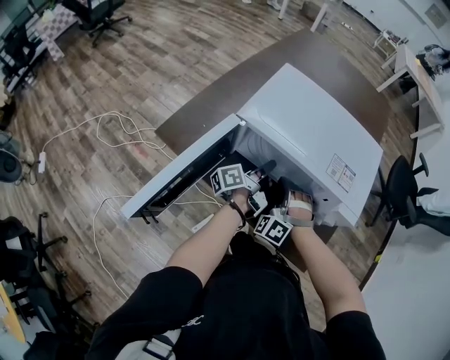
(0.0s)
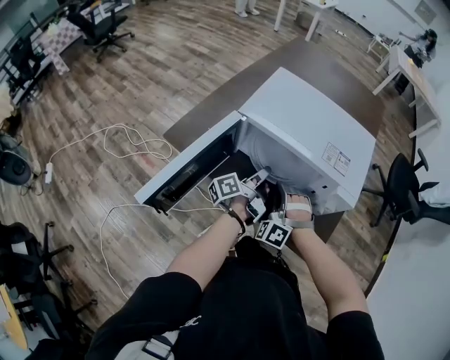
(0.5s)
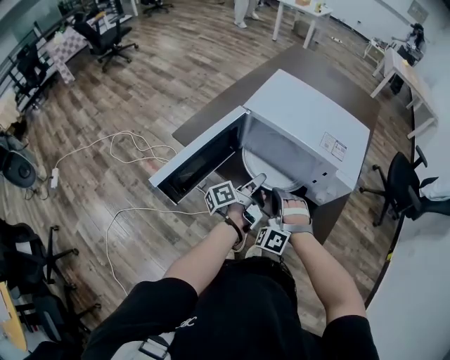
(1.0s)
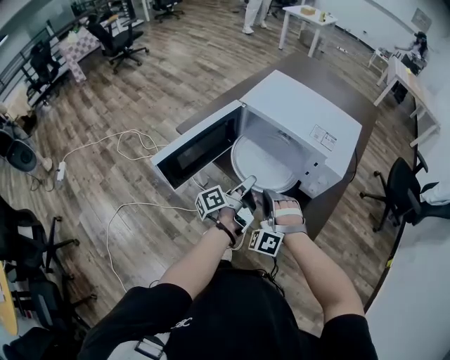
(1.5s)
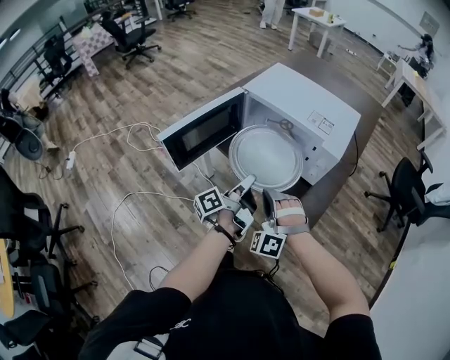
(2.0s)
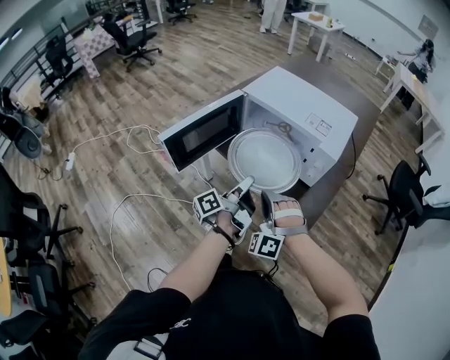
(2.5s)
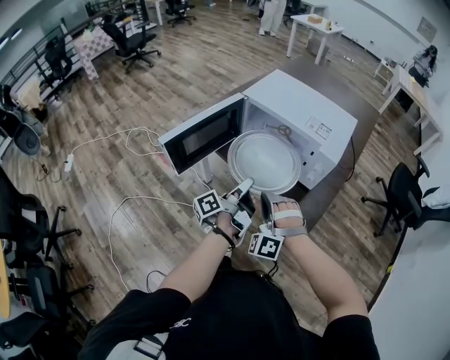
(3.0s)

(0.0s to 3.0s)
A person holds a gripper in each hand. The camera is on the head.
0.0s - 1.5s: Both grippers move backward, approximately 20 cm.
1.5s - 3.0s: Both grippers travel together backward, about 10 cm.

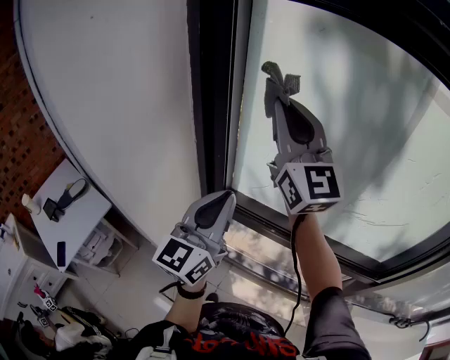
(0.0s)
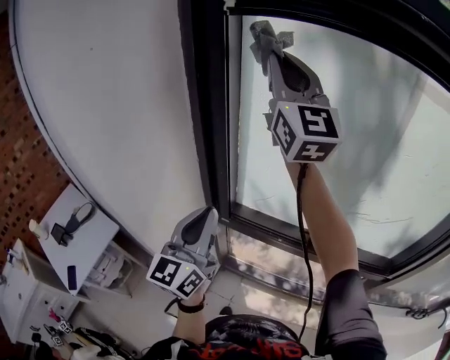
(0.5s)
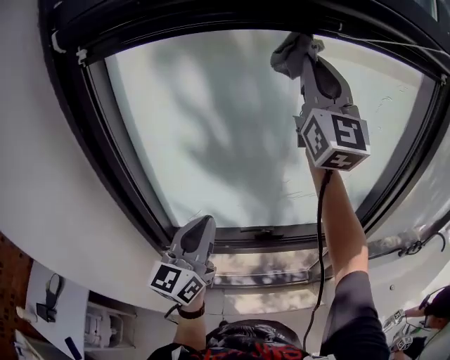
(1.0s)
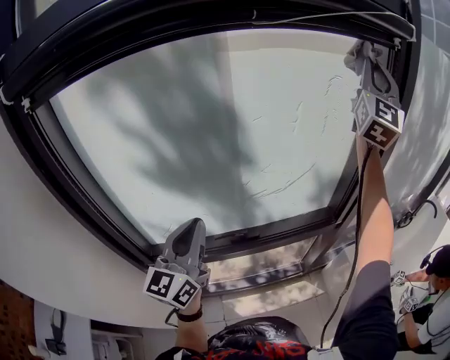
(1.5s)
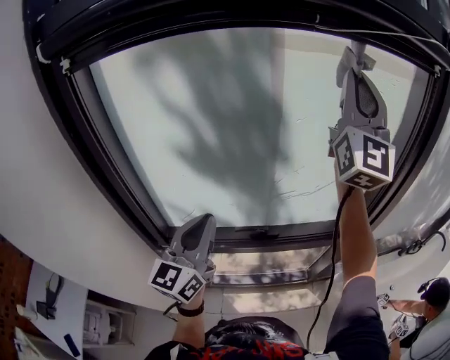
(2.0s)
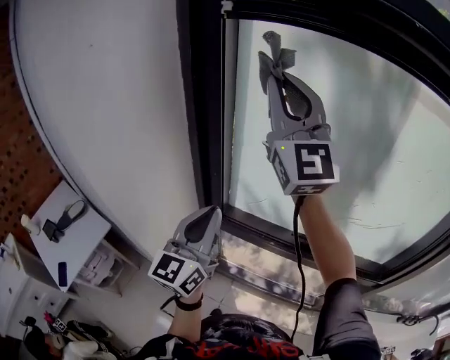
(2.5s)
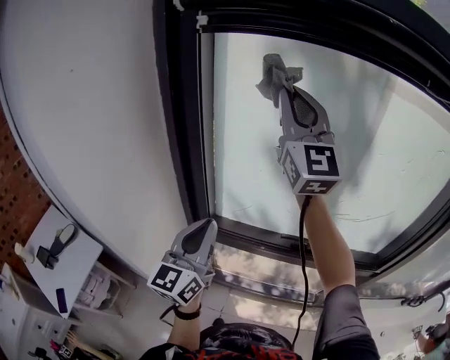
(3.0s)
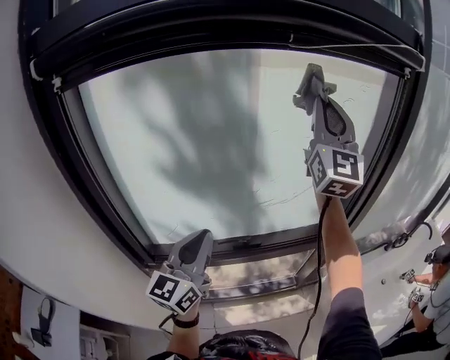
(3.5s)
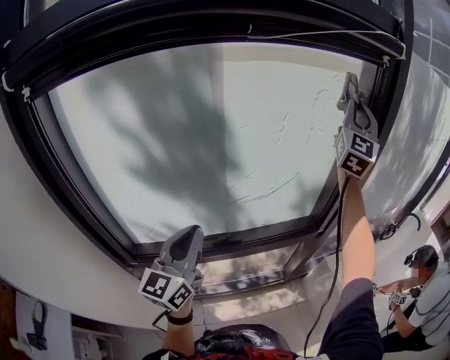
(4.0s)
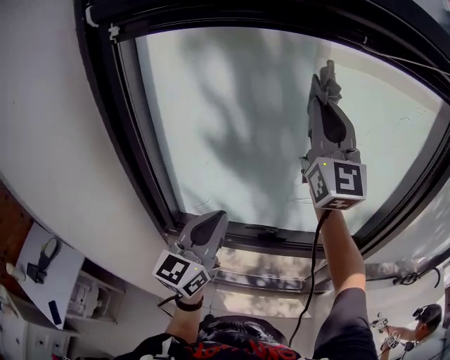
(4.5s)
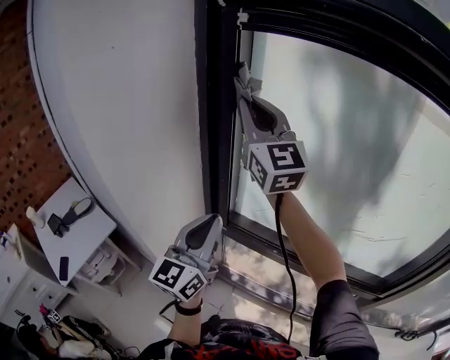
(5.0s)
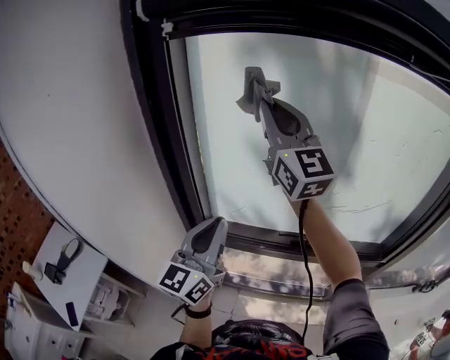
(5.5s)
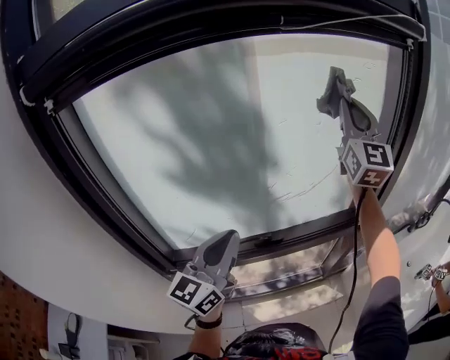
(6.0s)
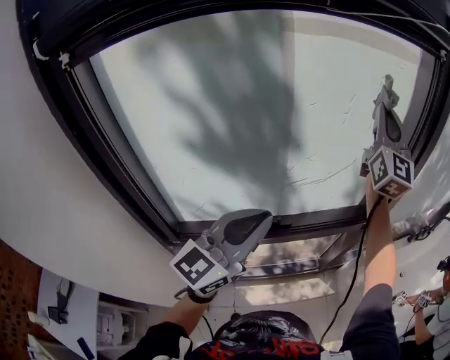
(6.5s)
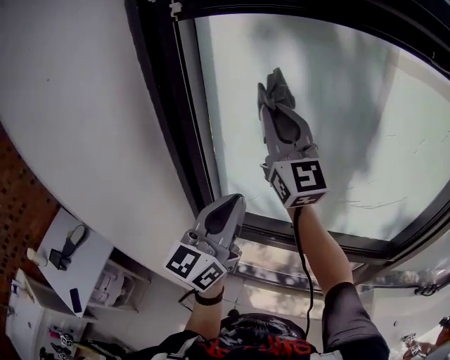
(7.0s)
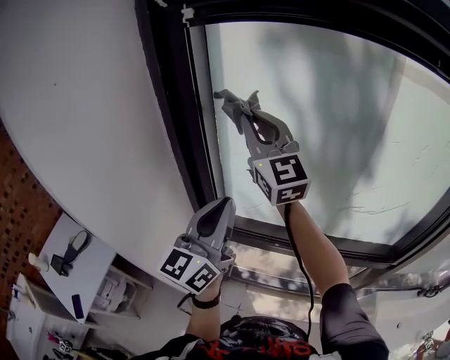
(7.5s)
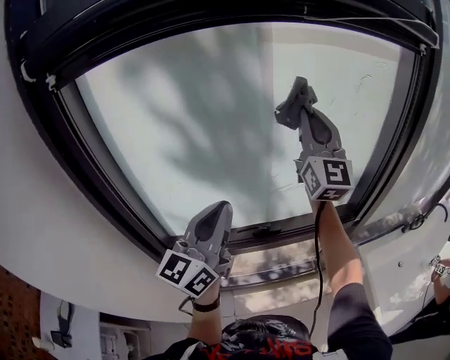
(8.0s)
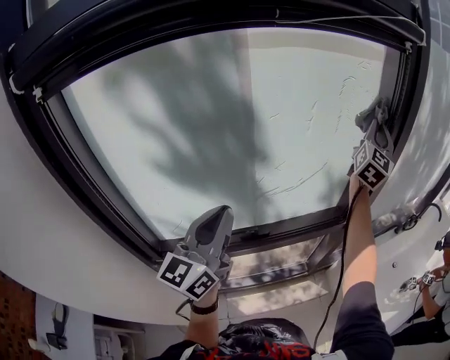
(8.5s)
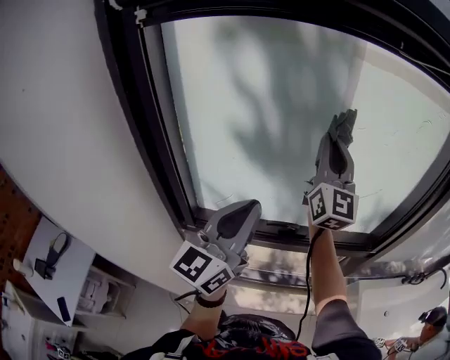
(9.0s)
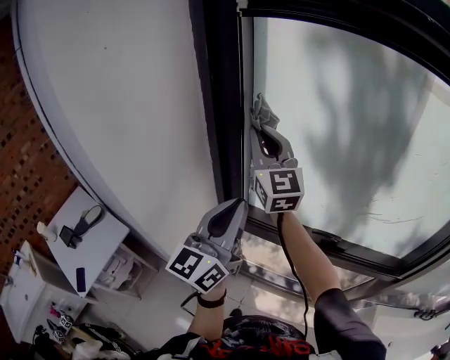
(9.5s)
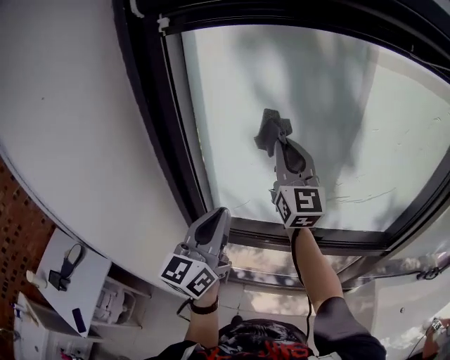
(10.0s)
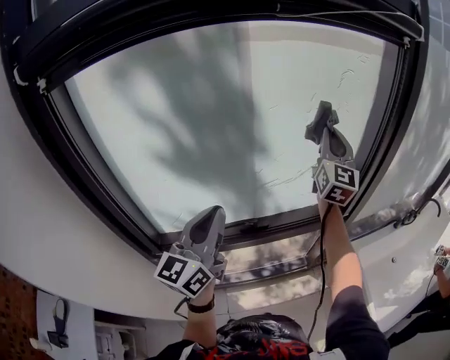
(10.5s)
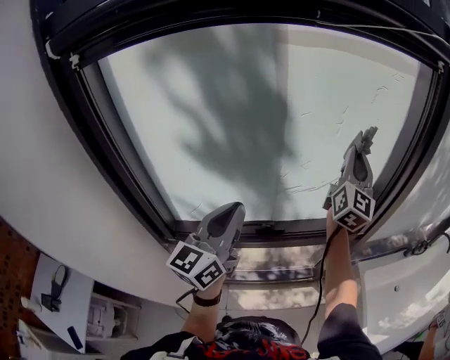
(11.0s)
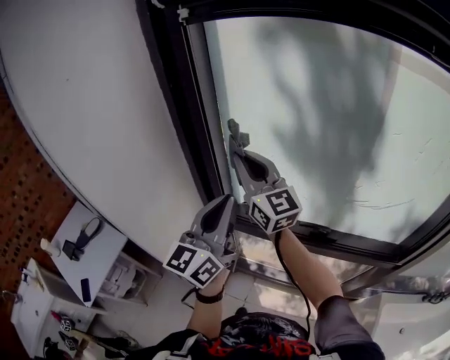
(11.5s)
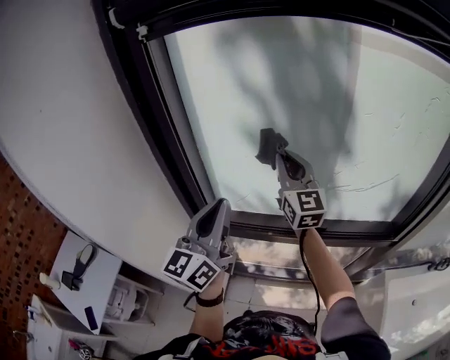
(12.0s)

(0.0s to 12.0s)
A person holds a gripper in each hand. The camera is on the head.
0.0s - 2.0s: The right gripper shifts by approximately 40 cm, and rotates roughly 50 degrees, while the left gripper changes place by approximately 15 cm, and turns by about 20 degrees.
2.0s - 4.0s: The right gripper swivels some 30 degrees.
4.0s - 6.0s: The right gripper changes its angle by some 20 degrees.
8.0s - 10.0s: The right gripper rotates about 20 degrees. The left gripper ends up about 15 cm from where it was, and rotates approximately 20 degrees.
10.0s - 12.0s: The right gripper travels downward by some 10 cm.

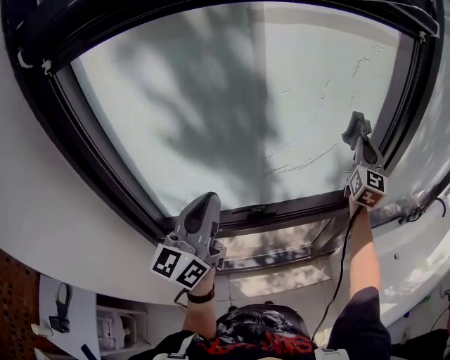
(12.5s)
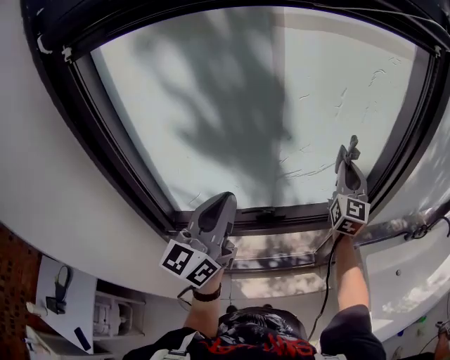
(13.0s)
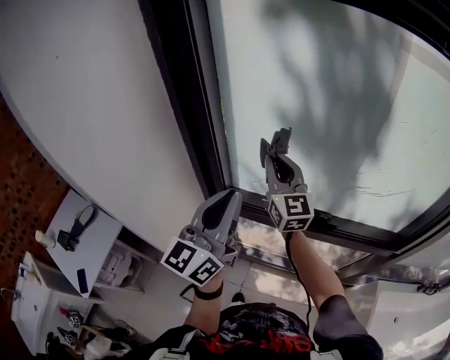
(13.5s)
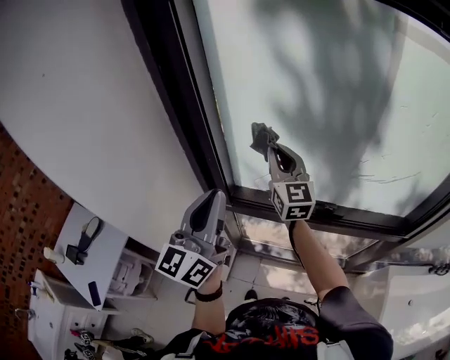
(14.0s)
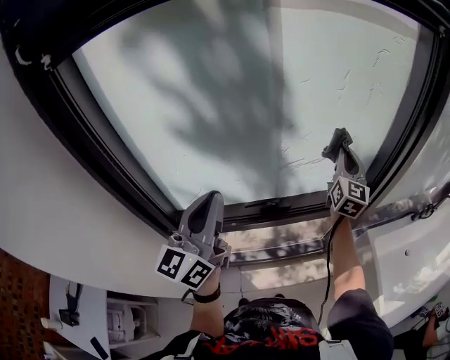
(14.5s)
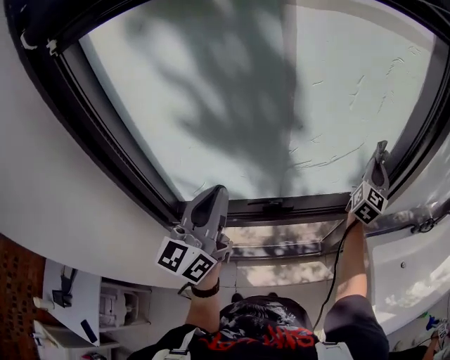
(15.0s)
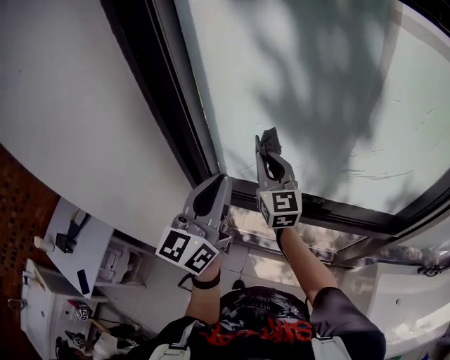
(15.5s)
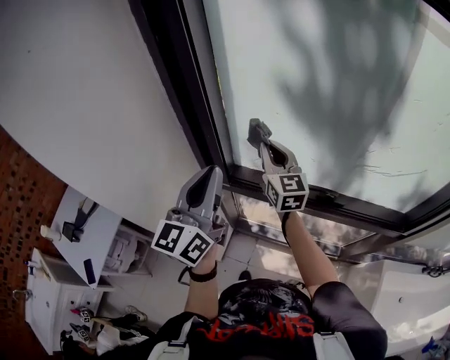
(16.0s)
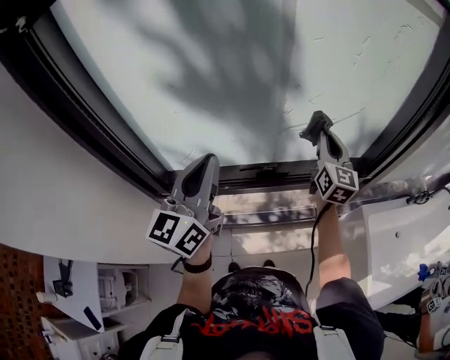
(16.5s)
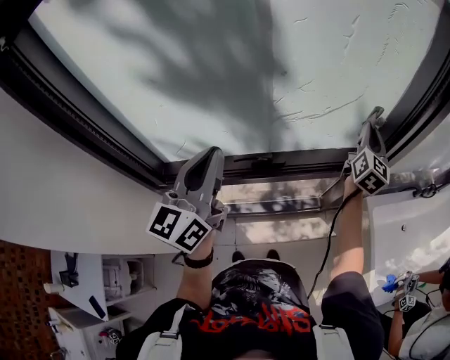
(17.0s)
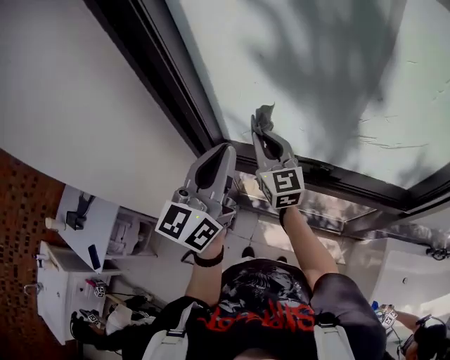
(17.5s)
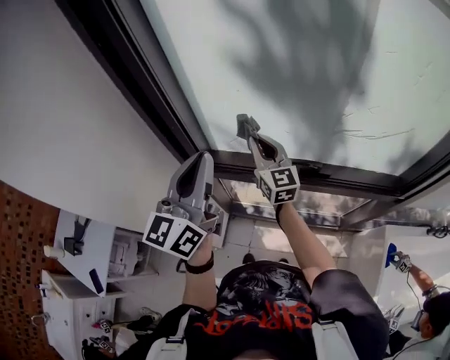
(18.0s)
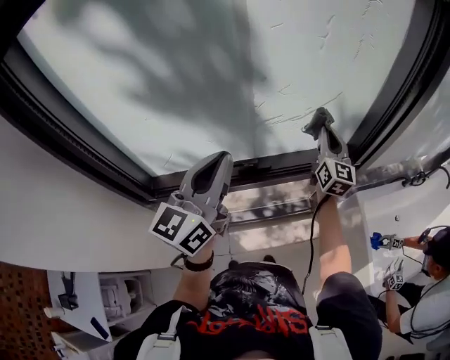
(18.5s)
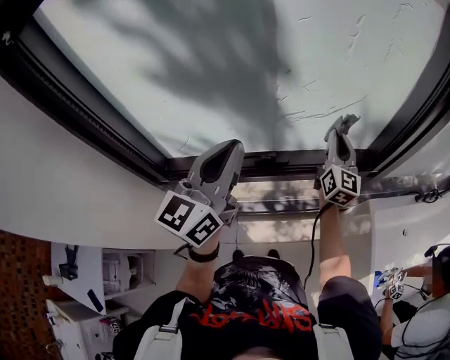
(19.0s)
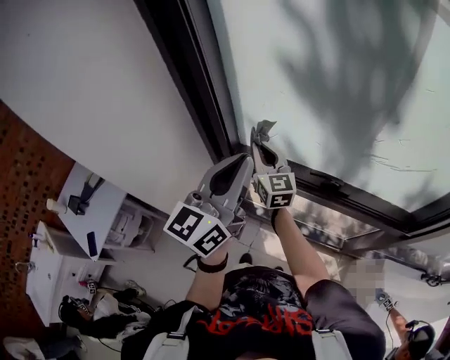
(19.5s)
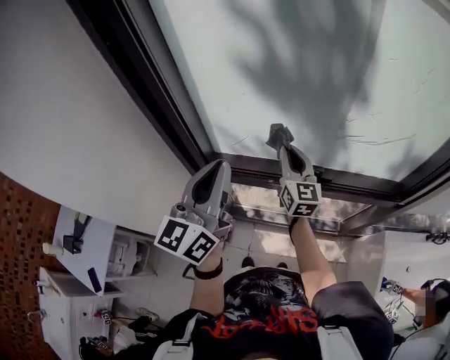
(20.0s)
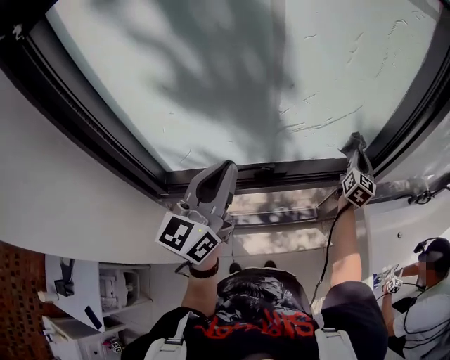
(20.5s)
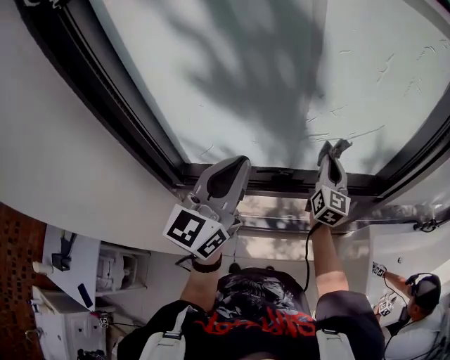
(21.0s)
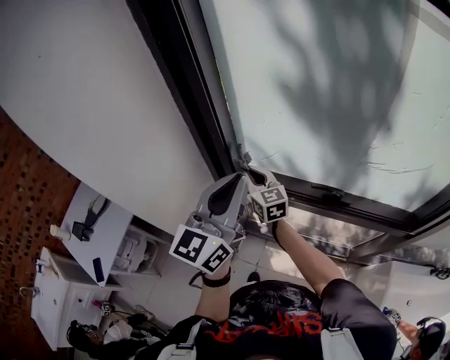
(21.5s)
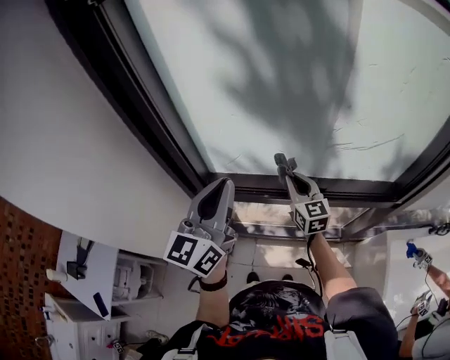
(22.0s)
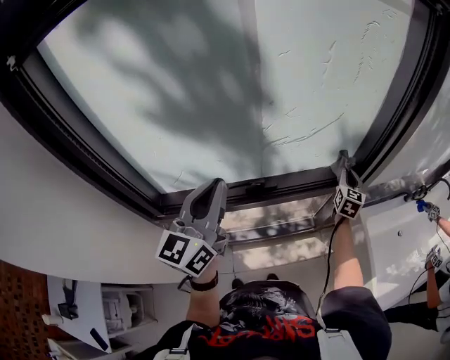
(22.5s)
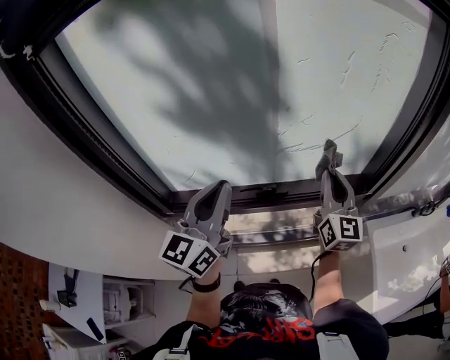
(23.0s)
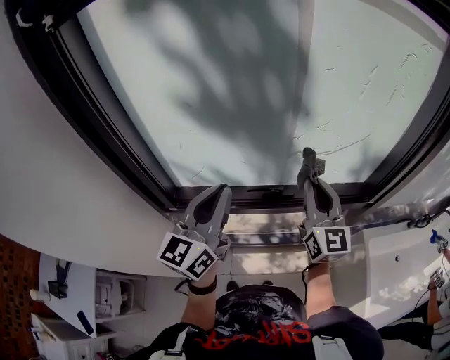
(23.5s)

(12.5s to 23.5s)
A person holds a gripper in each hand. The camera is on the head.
14.5s - 16.0s: The right gripper moves some 50 cm, and swivels roughly 50 degrees. Meanwhile the left gripper moves some 20 cm, and swivels some 30 degrees.
16.0s - 18.0s: The right gripper is displaced downward by some 5 cm.
20.0s - 21.5s: The right gripper changes its angle by roughly 30 degrees.
21.5s - 23.5s: The right gripper turns by approximately 40 degrees; the left gripper moves about 15 cm.

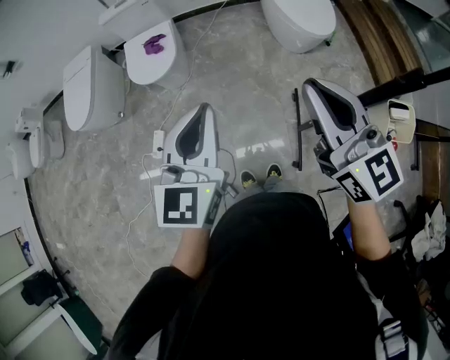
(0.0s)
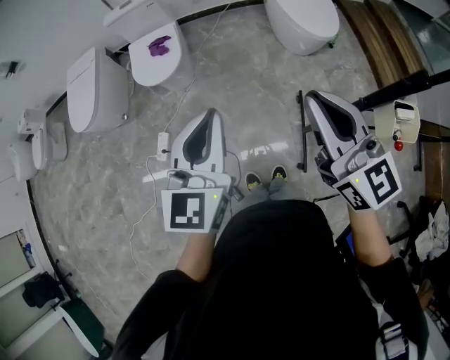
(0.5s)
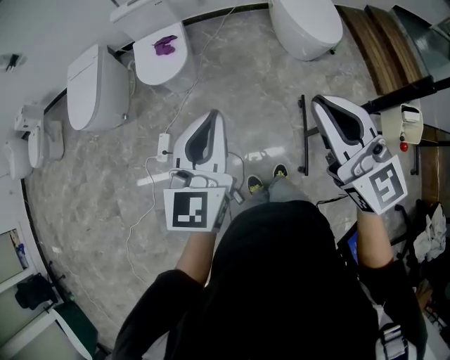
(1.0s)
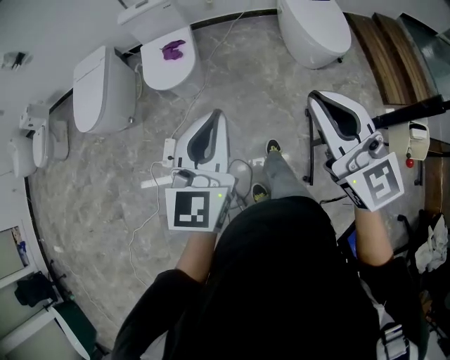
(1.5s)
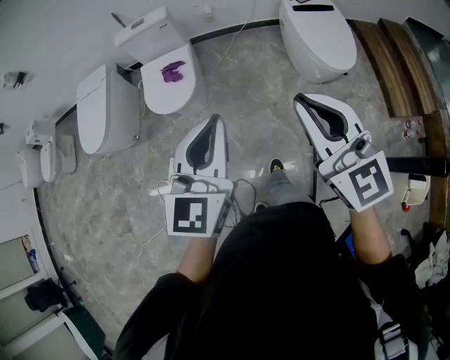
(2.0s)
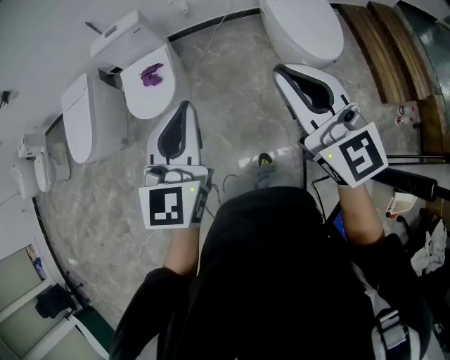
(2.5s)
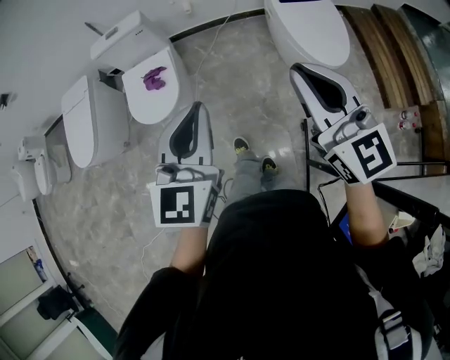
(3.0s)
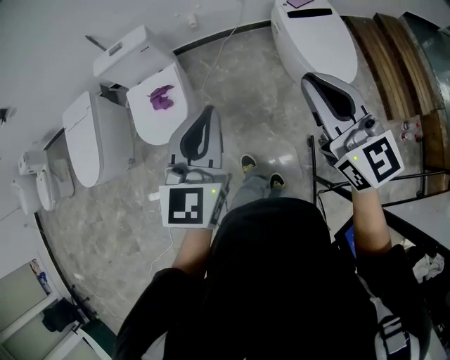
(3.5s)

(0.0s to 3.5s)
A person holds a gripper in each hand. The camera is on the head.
0.0s - 2.0s: Both grippers move forward, some 15 cm.
2.0s - 3.5s: Both grippers travel together forward, roughly 25 cm.
